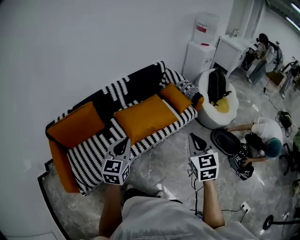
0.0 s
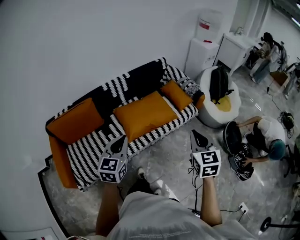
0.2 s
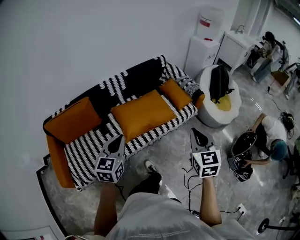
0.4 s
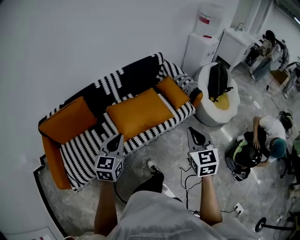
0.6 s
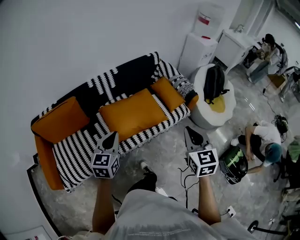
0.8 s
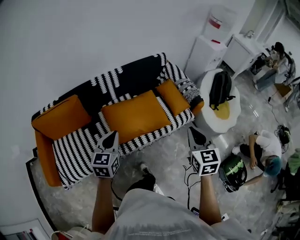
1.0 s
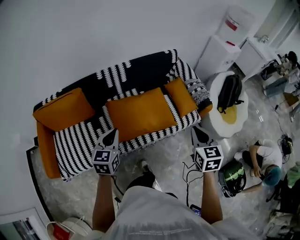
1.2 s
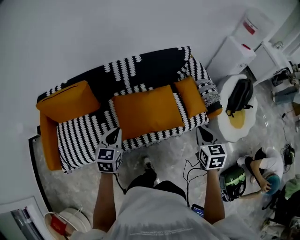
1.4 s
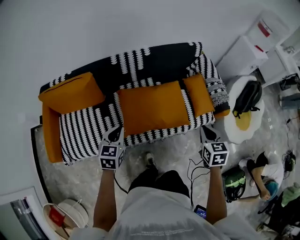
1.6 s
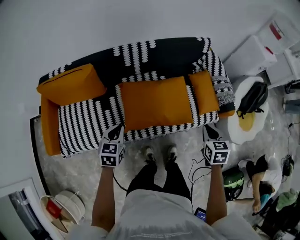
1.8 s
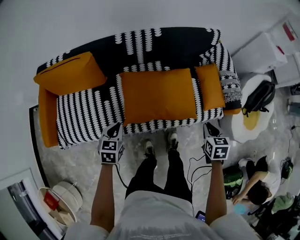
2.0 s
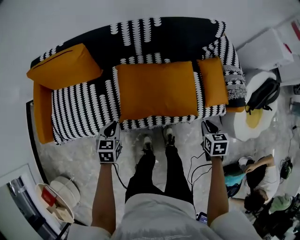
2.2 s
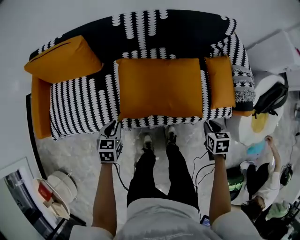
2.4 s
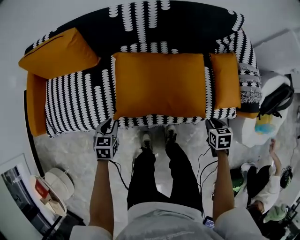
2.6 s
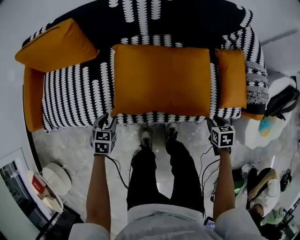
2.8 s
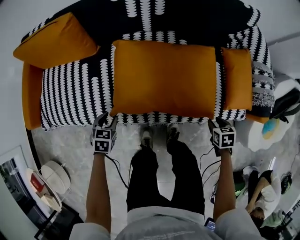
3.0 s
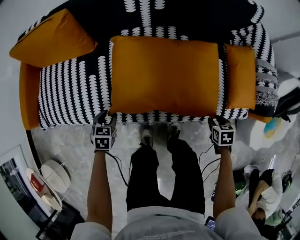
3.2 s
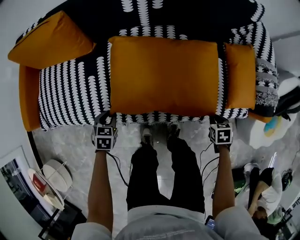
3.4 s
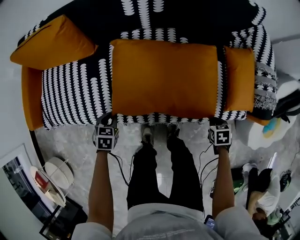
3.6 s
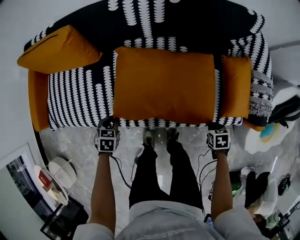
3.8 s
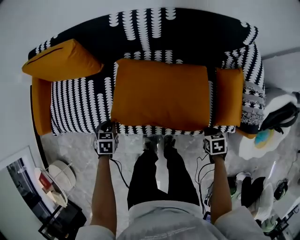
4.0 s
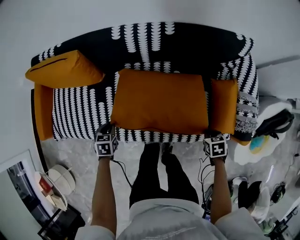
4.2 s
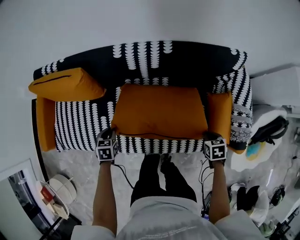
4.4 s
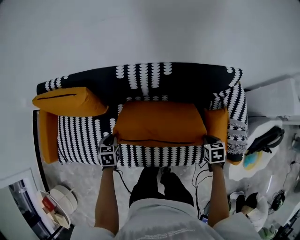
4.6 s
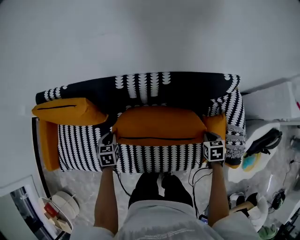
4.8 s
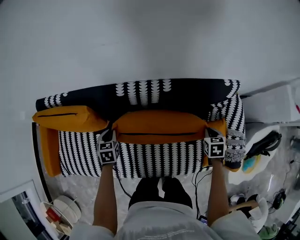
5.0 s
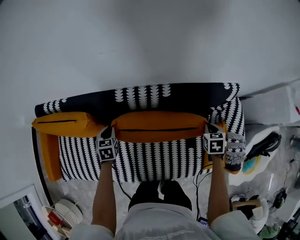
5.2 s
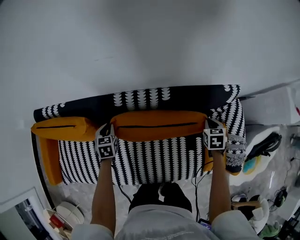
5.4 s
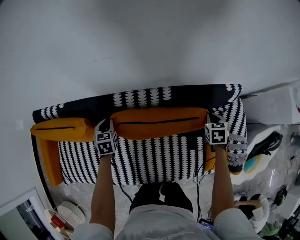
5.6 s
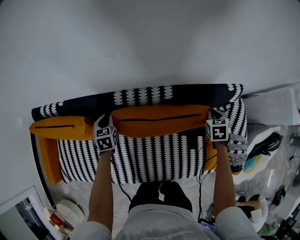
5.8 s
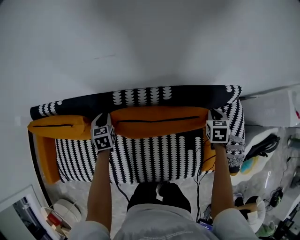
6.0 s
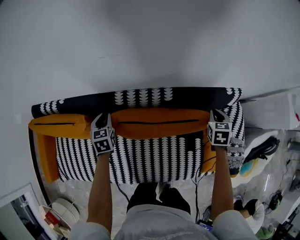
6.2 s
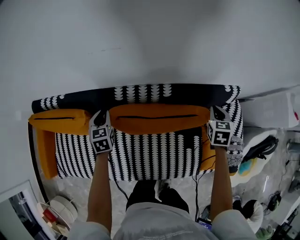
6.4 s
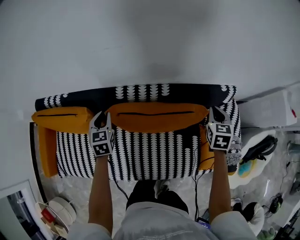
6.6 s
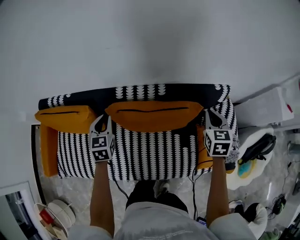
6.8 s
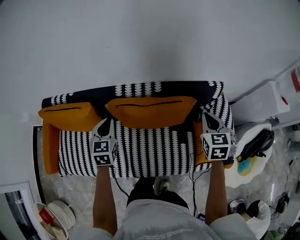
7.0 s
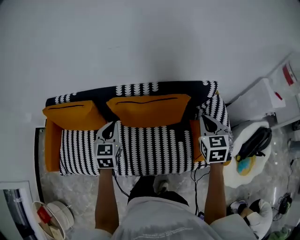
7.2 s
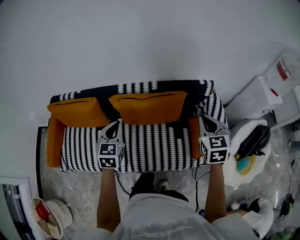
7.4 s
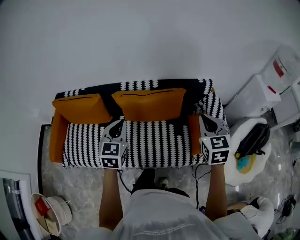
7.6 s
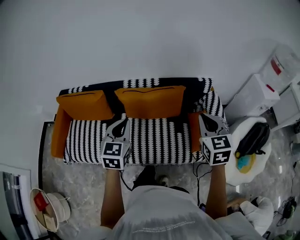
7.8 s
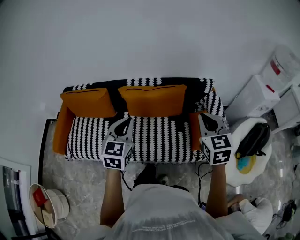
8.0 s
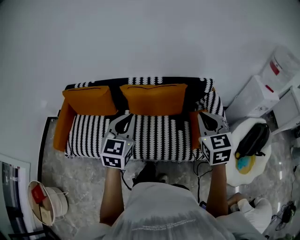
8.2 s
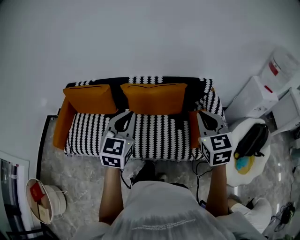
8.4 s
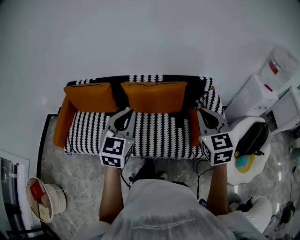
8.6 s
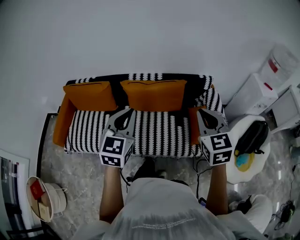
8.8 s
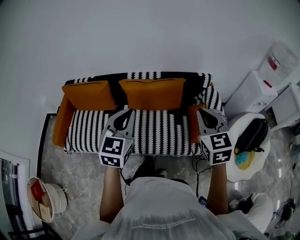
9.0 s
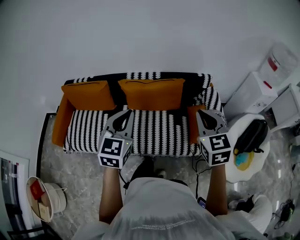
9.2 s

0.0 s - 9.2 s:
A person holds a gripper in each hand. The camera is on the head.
0.0 s - 1.6 s: The grippers both shift forward and downward by roughly 30 cm. The right gripper changes its angle by roughly 30 degrees. The left gripper turns by some 30 degrees.
1.6 s - 3.0 s: The grippers both shift downward by about 40 cm. The right gripper swivels approximately 30 degrees, and opens up; the left gripper swivels roughly 30 degrees, and opens its fingers.
3.0 s - 4.6 s: The left gripper moves some 25 cm, and closes up. The right gripper changes place by roughly 30 cm, and closes up.
4.6 s - 6.2 s: The grippers both shift forward by approximately 25 cm. The right gripper turns by roughly 20 degrees.
6.2 s - 7.6 s: The left gripper travels backward, upward and to the right by approximately 50 cm, changes its angle by approximately 30 degrees, and closes, while the right gripper goes approximately 40 cm backward and upward, and rotates roughly 30 degrees.
7.6 s - 9.2 s: Both grippers travel together backward and upward, about 15 cm.

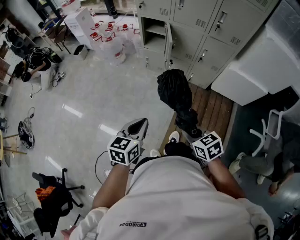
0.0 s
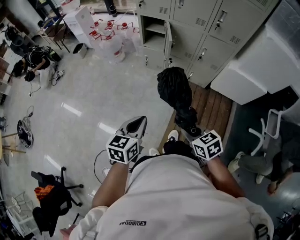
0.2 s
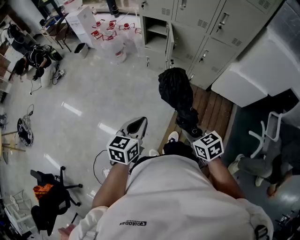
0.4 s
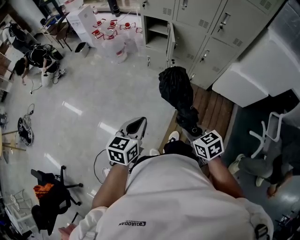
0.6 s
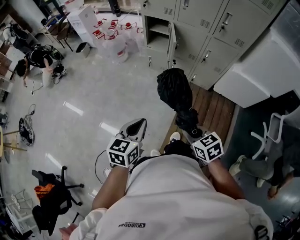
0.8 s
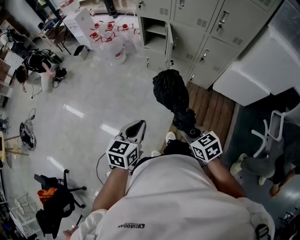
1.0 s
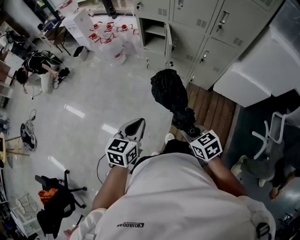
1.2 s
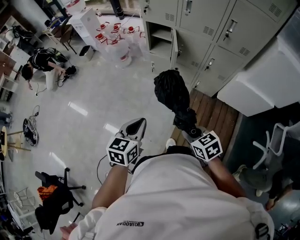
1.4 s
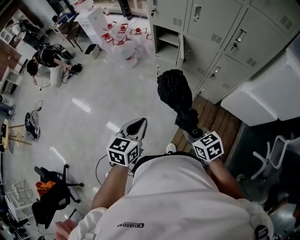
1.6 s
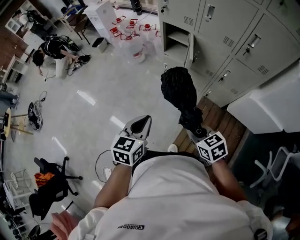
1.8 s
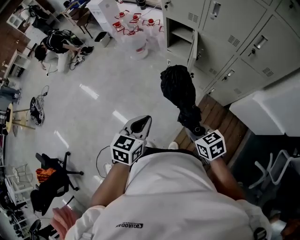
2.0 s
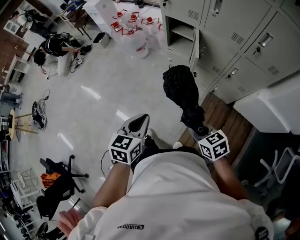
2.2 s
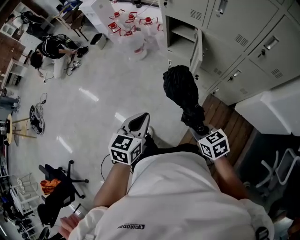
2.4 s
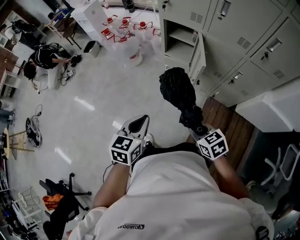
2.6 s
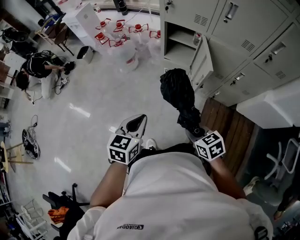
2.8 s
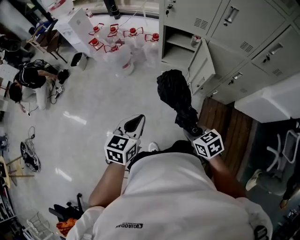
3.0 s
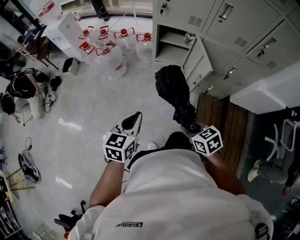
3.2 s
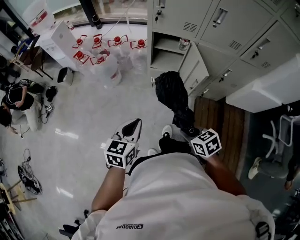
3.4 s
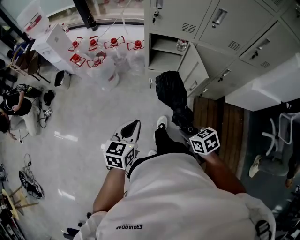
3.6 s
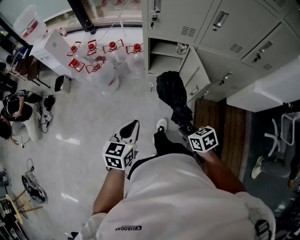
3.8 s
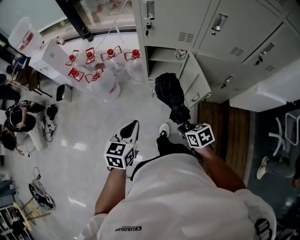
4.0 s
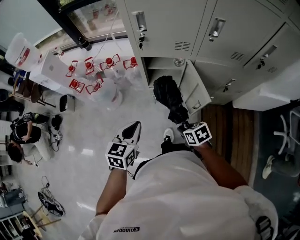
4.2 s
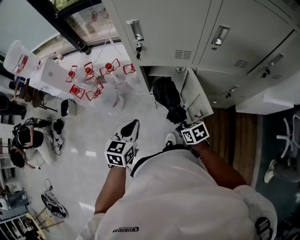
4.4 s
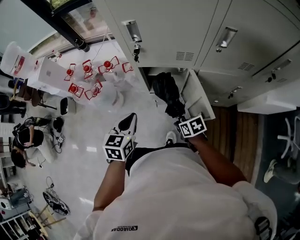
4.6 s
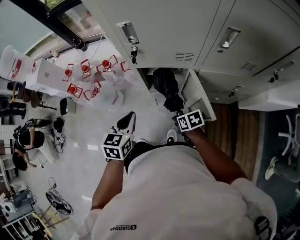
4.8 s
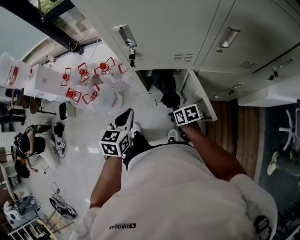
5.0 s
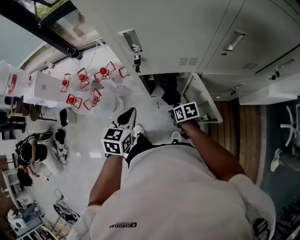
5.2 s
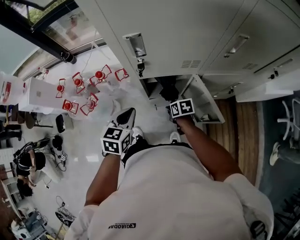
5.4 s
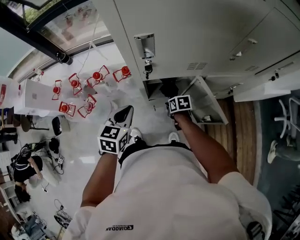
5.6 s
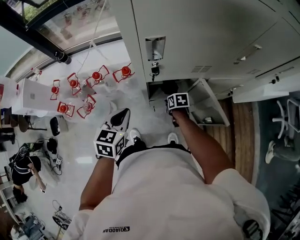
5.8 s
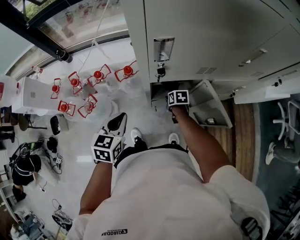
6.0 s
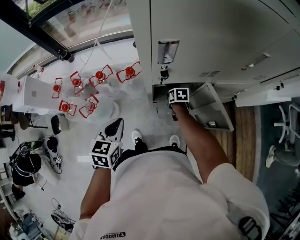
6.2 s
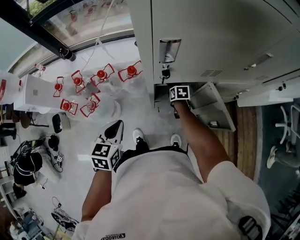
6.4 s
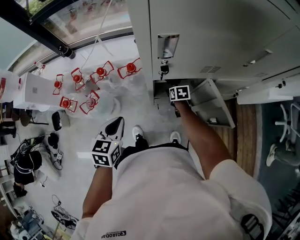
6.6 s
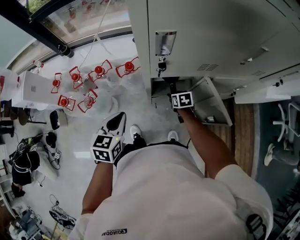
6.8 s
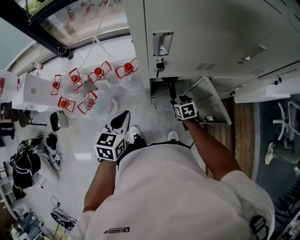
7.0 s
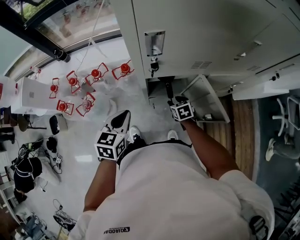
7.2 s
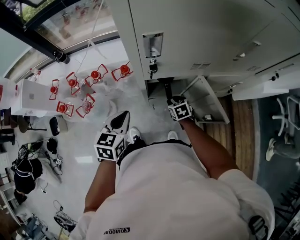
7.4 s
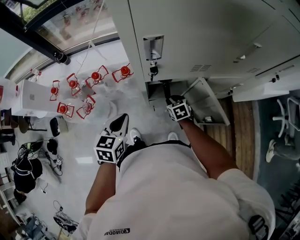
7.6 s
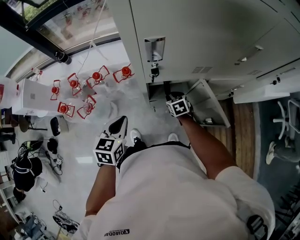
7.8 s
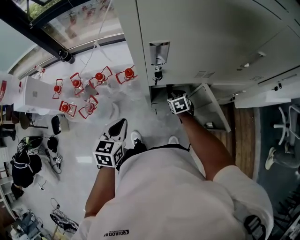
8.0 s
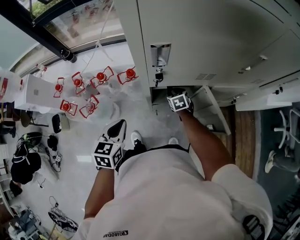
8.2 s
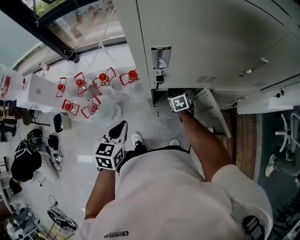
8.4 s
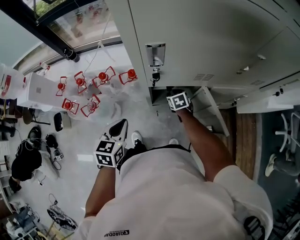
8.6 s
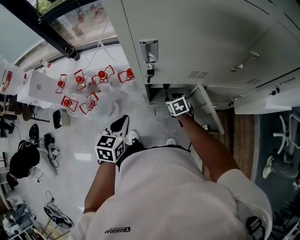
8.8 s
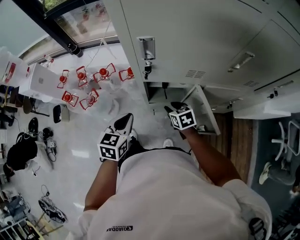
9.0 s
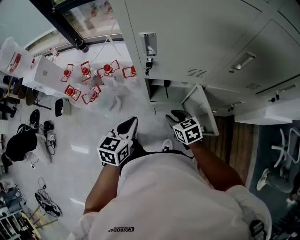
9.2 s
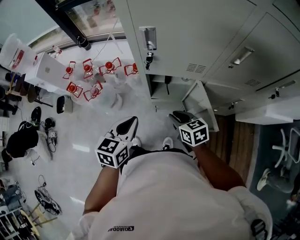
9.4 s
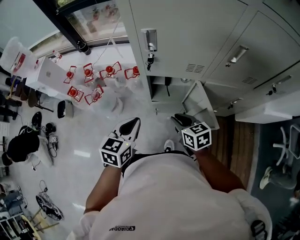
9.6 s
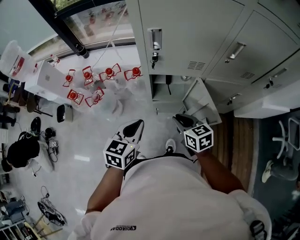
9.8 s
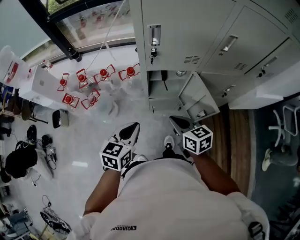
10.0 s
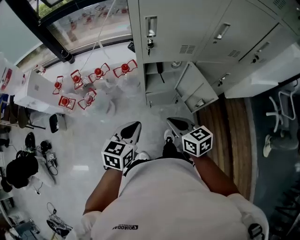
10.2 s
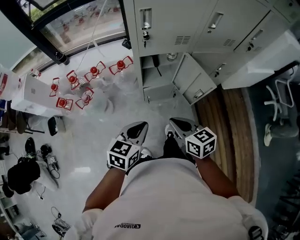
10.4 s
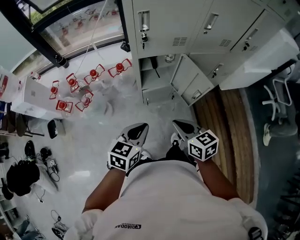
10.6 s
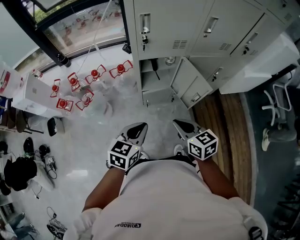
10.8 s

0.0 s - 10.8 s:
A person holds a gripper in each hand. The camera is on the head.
0.0 s - 1.6 s: The two grippers go some 15 cm forward.
1.6 s - 3.0 s: The left gripper moves forward and to the left, some 35 cm, while the right gripper travels forward, to the left and downward by some 35 cm.
3.0 s - 4.6 s: The grippers both shift forward by approximately 35 cm. The right gripper turns by about 30 degrees.
4.6 s - 6.2 s: The left gripper heads forward and to the left, covering roughly 20 cm. Meanwhile the right gripper shifts about 25 cm forward, and turns by about 30 degrees.
6.2 s - 7.8 s: The right gripper travels backward and back again, some 5 cm each way, rotates some 30 degrees, and opens and closes again.
7.8 s - 9.2 s: The right gripper is displaced backward and upward by roughly 20 cm, and swivels approximately 20 degrees, while the left gripper shifts about 10 cm to the right and backward.
9.2 s - 10.8 s: The left gripper is displaced backward by approximately 15 cm, and turns by about 20 degrees. Meanwhile the right gripper moves backward and upward, approximately 25 cm, turns by some 20 degrees, and closes.

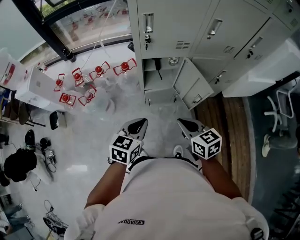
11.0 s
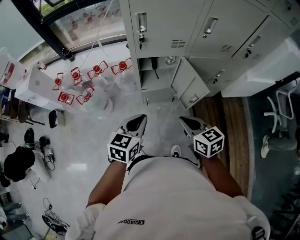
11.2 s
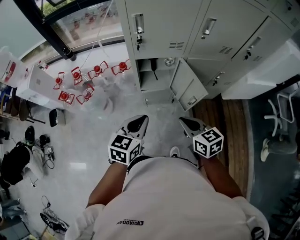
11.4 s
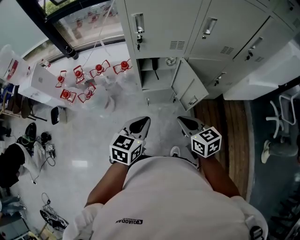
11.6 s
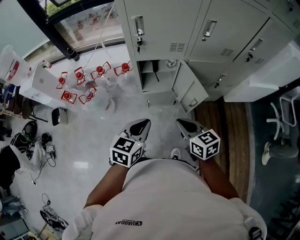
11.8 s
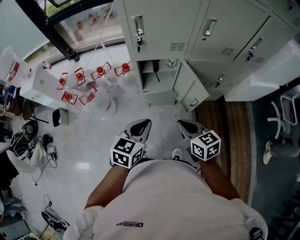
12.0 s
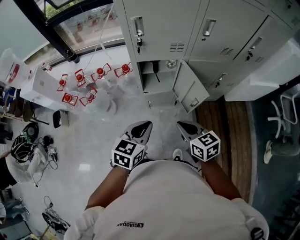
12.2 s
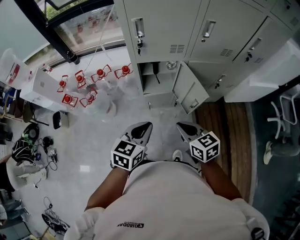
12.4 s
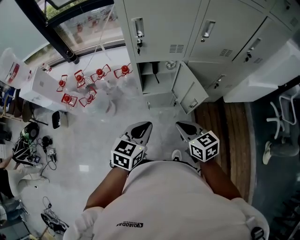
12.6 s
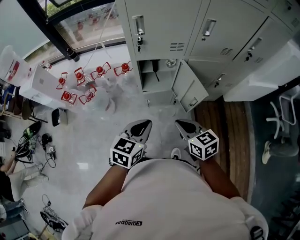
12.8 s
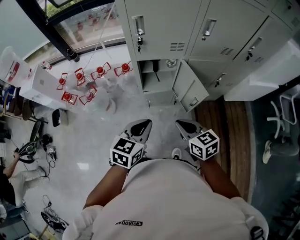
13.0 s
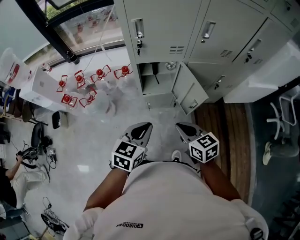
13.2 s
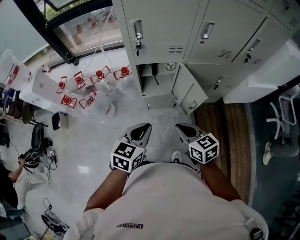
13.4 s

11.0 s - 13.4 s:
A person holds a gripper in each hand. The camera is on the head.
11.0 s - 12.2 s: The left gripper travels to the right by some 5 cm.
12.2 s - 13.4 s: Neither gripper changes place.

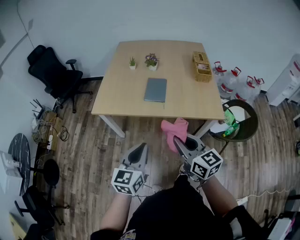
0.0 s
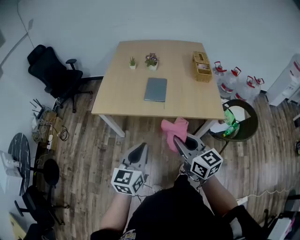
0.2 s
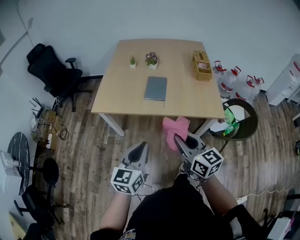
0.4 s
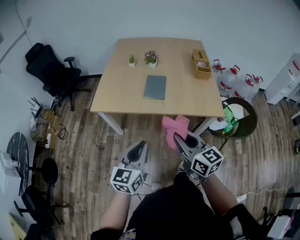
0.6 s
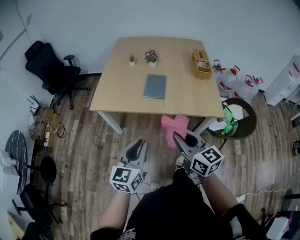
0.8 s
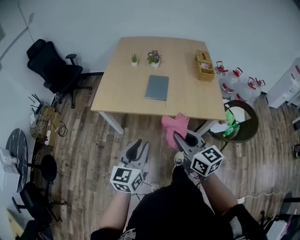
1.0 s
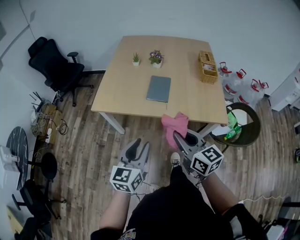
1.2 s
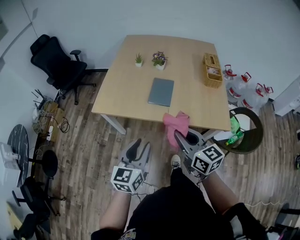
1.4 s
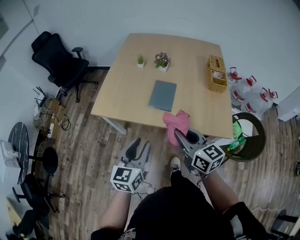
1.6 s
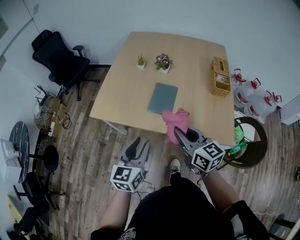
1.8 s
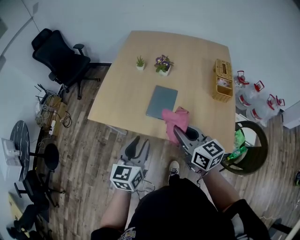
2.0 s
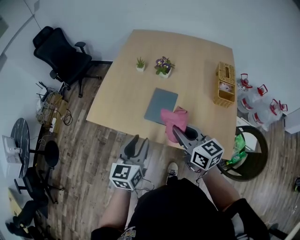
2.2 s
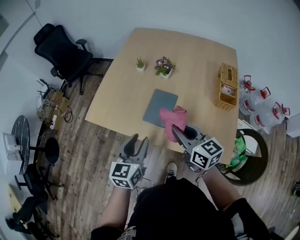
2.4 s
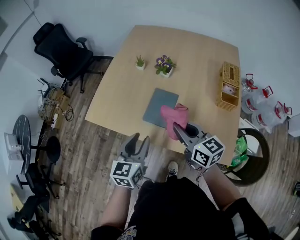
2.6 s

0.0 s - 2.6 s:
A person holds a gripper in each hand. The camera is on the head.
0.0 s - 1.2 s: The left gripper opens.
1.2 s - 2.6 s: Both grippers move forward and to the right, roughly 30 cm.
